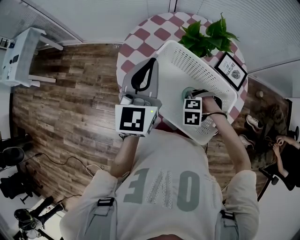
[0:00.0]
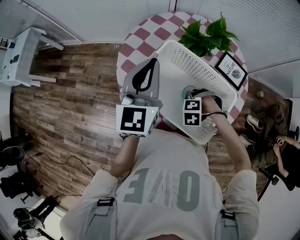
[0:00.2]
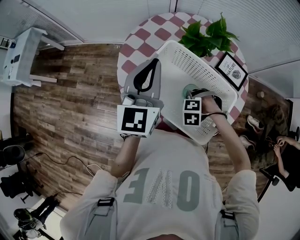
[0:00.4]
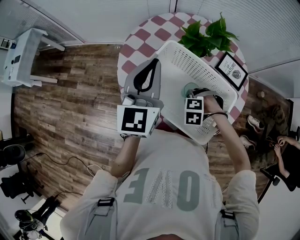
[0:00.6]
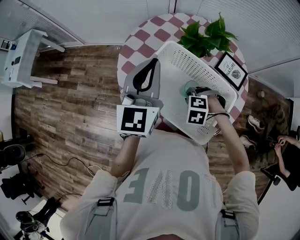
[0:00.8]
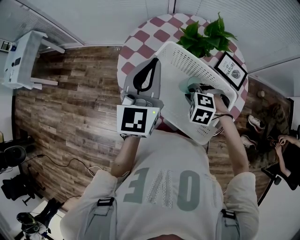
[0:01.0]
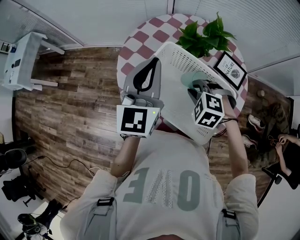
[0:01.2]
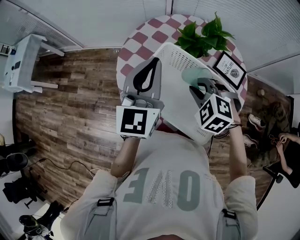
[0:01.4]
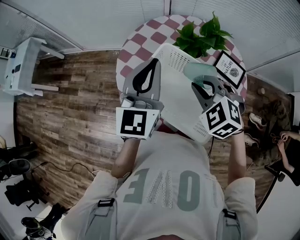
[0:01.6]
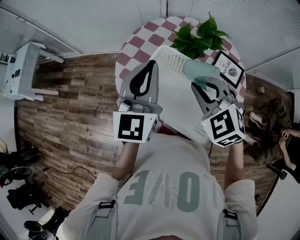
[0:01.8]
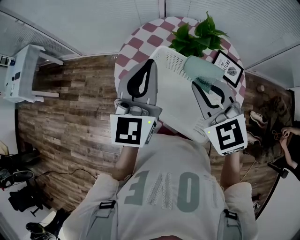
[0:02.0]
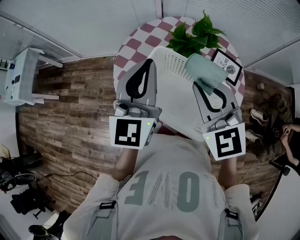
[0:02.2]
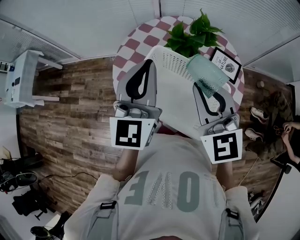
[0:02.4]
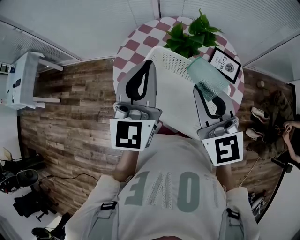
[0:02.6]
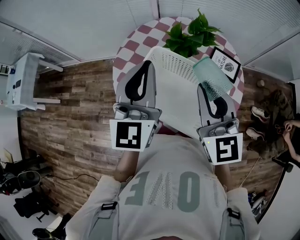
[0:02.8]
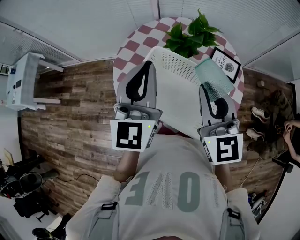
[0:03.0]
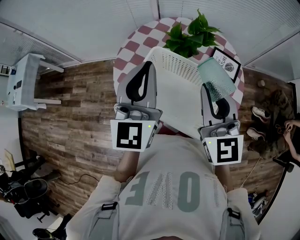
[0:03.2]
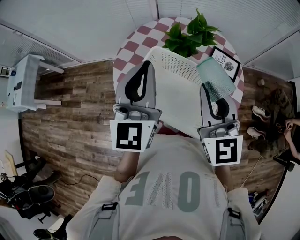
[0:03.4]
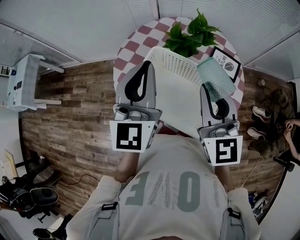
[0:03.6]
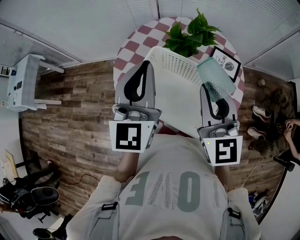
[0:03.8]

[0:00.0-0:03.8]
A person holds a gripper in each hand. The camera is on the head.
0.0 to 1.2 s: The right gripper travels upward by about 10 cm, swivels some 30 degrees, and closes up.
1.2 to 2.6 s: The left gripper travels upward by about 5 cm; the right gripper travels upward by about 20 cm, and angles its fingers upward, by some 50 degrees.
2.6 to 3.8 s: The grippers make only small movements.

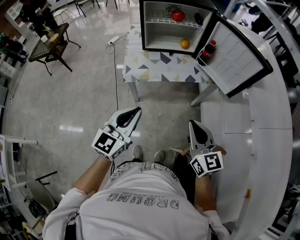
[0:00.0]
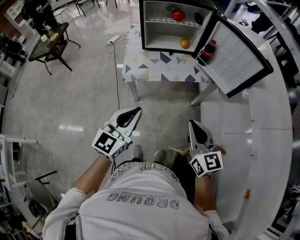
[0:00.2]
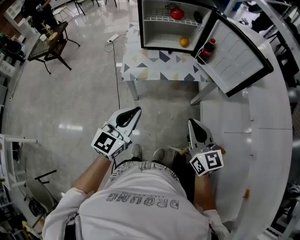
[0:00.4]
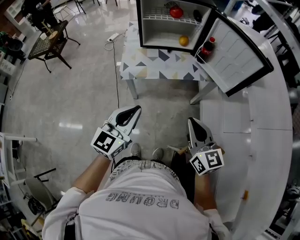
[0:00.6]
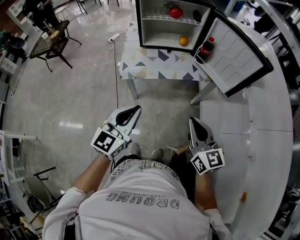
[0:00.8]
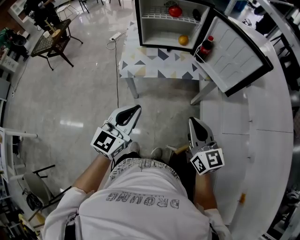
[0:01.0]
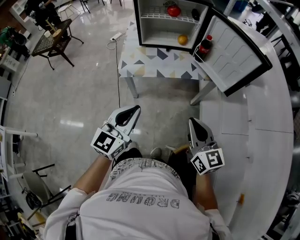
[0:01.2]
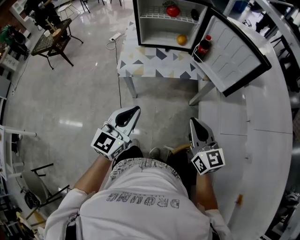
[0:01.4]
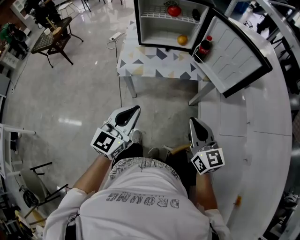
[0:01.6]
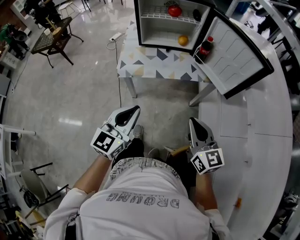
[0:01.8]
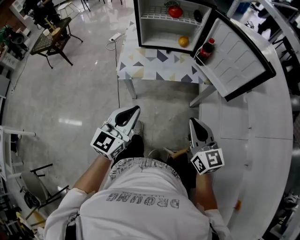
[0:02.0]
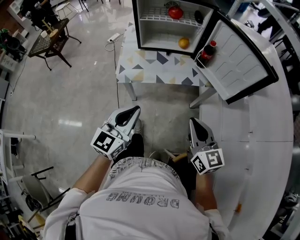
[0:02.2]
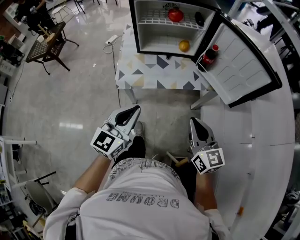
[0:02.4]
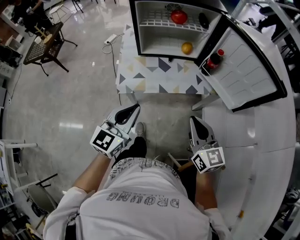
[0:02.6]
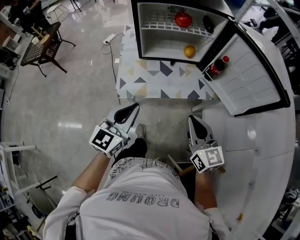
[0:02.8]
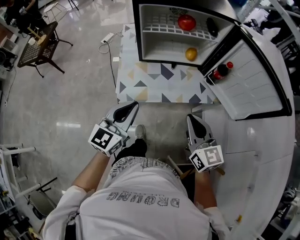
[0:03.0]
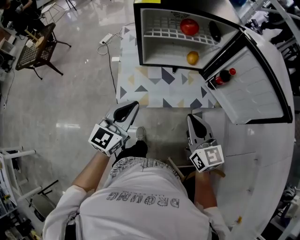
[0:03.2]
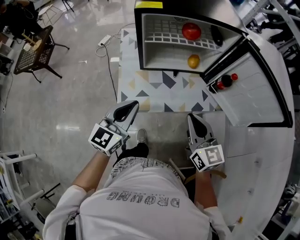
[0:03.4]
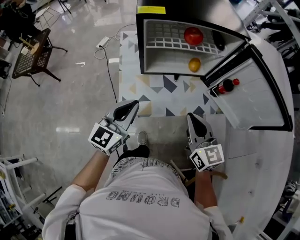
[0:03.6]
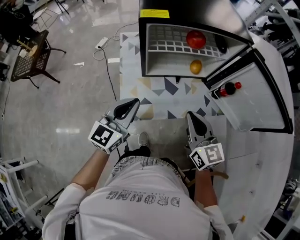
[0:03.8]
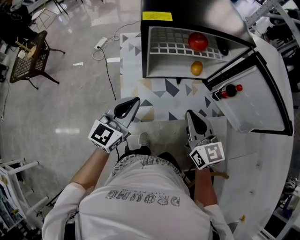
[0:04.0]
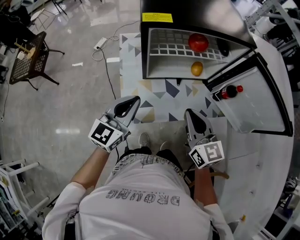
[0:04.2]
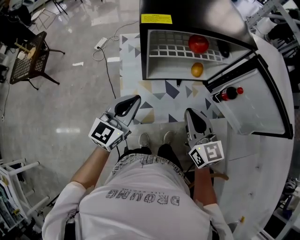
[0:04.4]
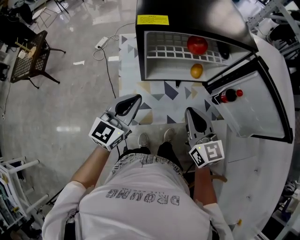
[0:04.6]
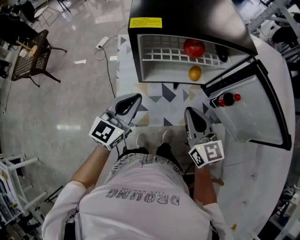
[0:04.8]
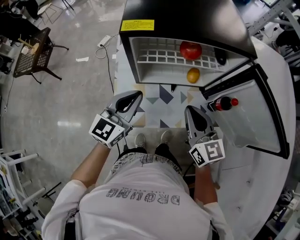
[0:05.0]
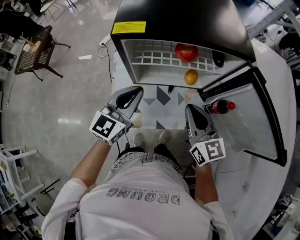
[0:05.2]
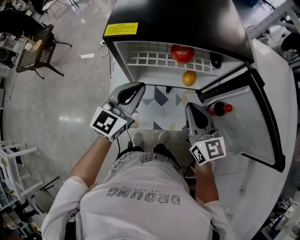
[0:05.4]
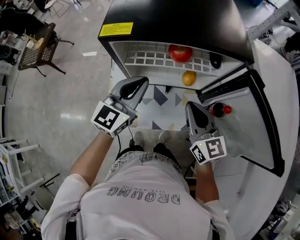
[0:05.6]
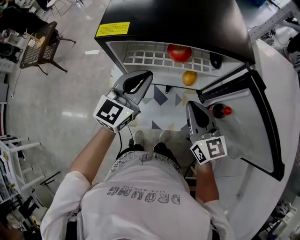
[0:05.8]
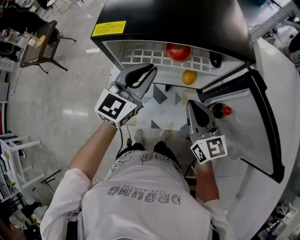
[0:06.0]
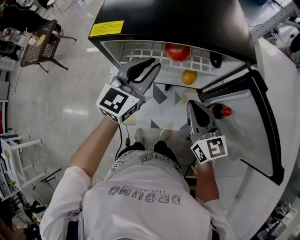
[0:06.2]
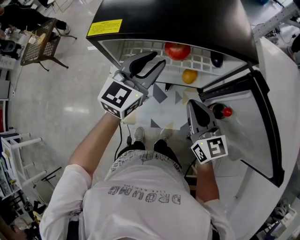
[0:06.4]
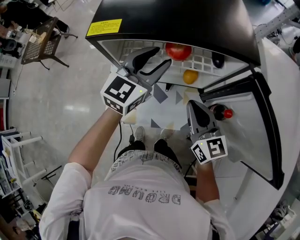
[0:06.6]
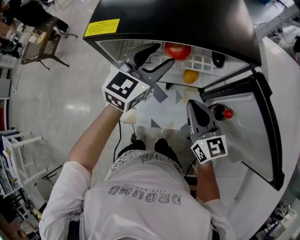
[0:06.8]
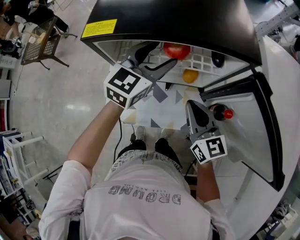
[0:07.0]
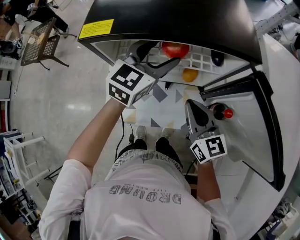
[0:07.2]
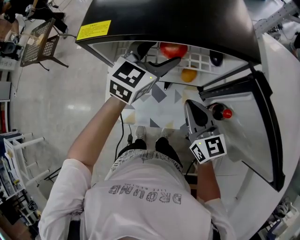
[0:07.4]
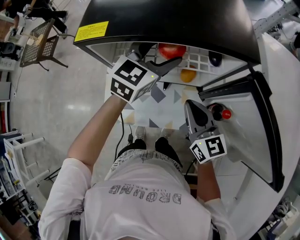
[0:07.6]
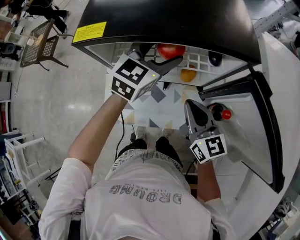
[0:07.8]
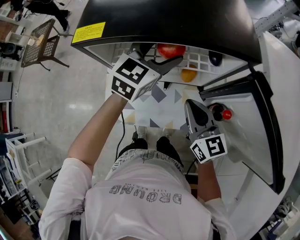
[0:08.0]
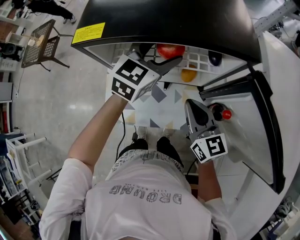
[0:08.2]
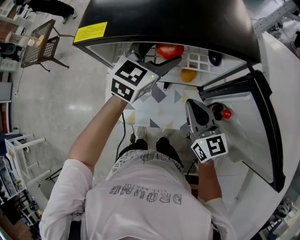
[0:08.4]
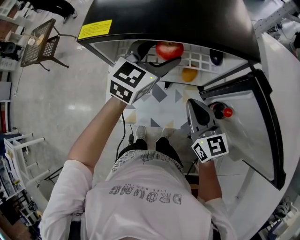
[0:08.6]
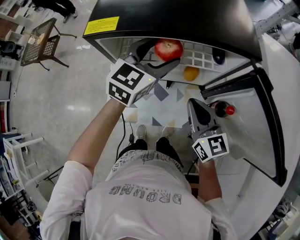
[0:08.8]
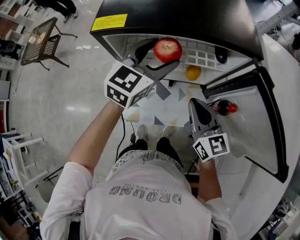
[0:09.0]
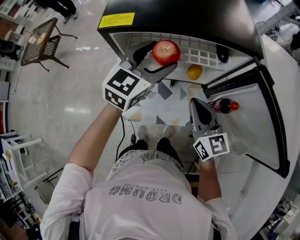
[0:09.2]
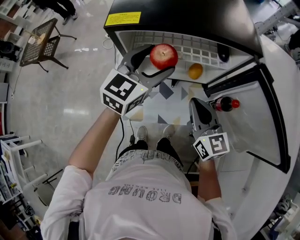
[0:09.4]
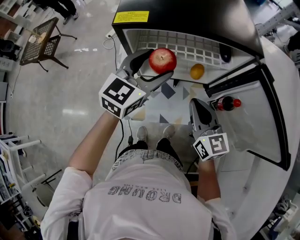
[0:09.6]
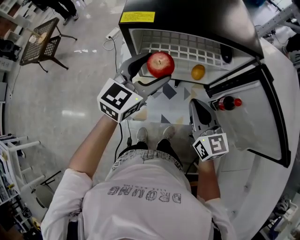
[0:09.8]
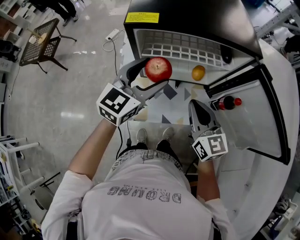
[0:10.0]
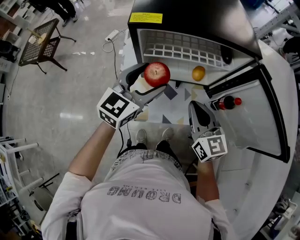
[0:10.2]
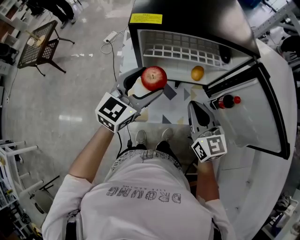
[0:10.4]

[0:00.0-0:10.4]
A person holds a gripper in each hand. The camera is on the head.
0.0 to 1.4 s: Both grippers move to the right, some 5 cm.
1.4 to 3.0 s: Both grippers travel together forward and to the left, some 25 cm.
3.0 to 4.4 s: Both grippers travel together forward and to the left, about 15 cm.
4.4 to 6.0 s: The grippers both shift forward and to the right by some 20 cm.
6.0 to 7.4 s: The left gripper is displaced forward and to the right by about 10 cm, and opens up.
7.4 to 9.0 s: The grippers make only small movements.
9.0 to 10.4 s: The right gripper shifts roughly 10 cm to the left and backward. The left gripper is displaced backward and to the left by about 15 cm.

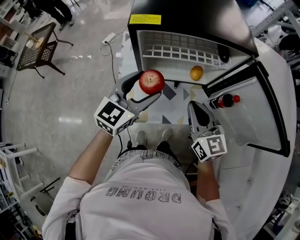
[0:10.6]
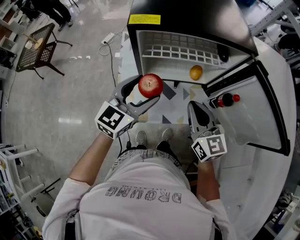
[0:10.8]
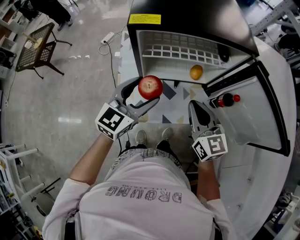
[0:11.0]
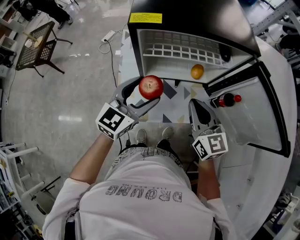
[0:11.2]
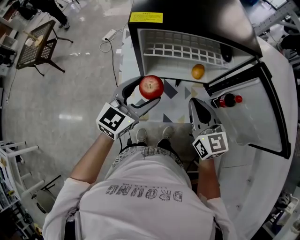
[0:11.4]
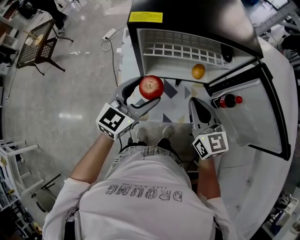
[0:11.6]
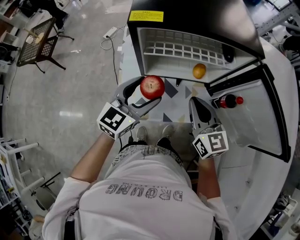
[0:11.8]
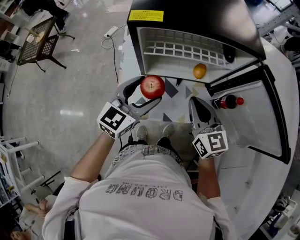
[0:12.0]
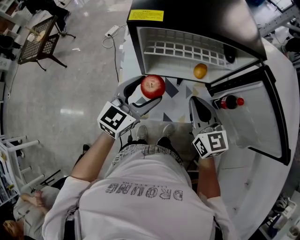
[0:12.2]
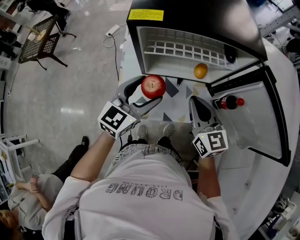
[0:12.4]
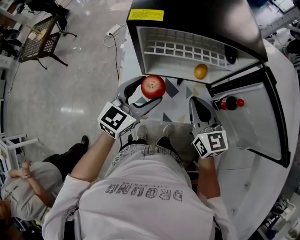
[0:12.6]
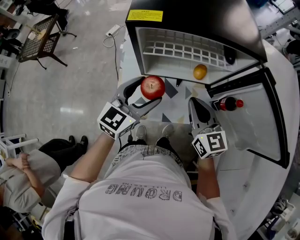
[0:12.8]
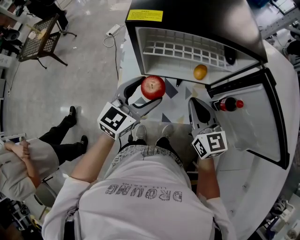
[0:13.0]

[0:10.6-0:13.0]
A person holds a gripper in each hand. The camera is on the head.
10.6 to 11.8 s: The grippers move only a little.
11.8 to 13.0 s: Both grippers stay about where they are.

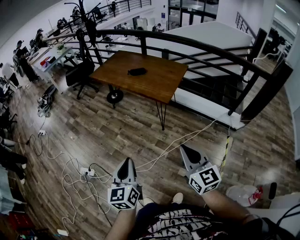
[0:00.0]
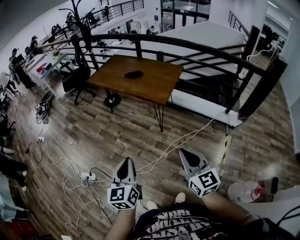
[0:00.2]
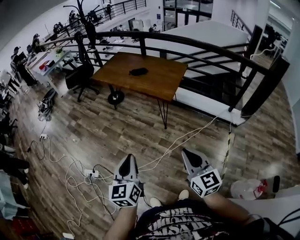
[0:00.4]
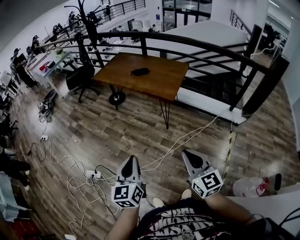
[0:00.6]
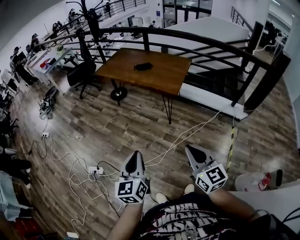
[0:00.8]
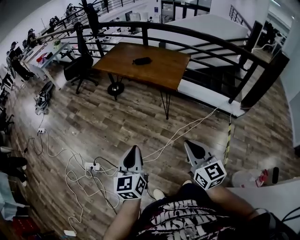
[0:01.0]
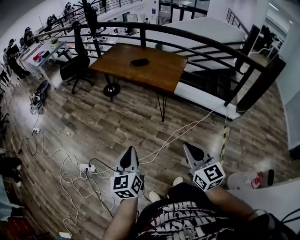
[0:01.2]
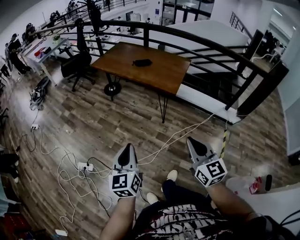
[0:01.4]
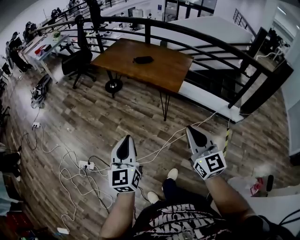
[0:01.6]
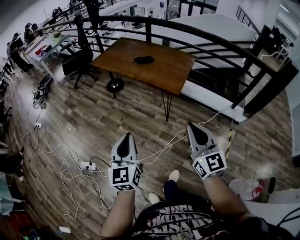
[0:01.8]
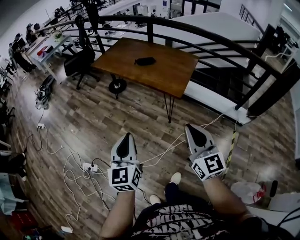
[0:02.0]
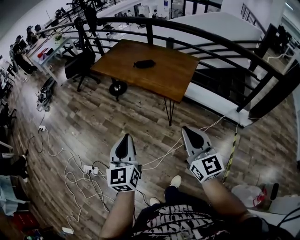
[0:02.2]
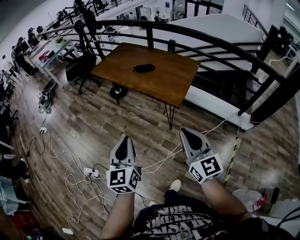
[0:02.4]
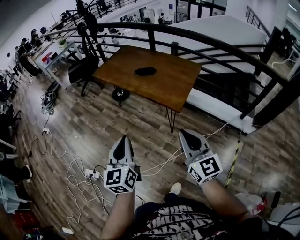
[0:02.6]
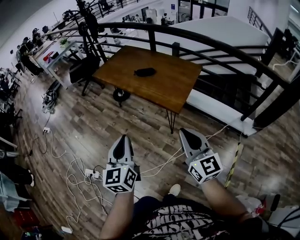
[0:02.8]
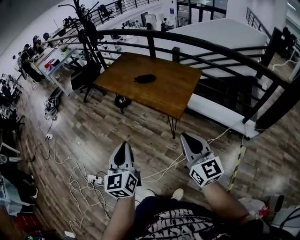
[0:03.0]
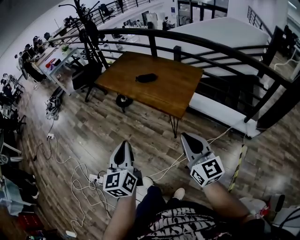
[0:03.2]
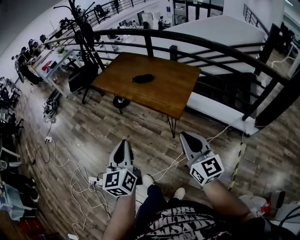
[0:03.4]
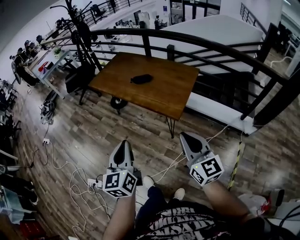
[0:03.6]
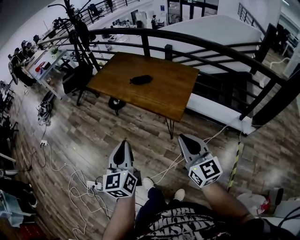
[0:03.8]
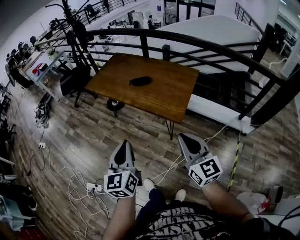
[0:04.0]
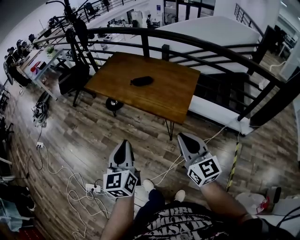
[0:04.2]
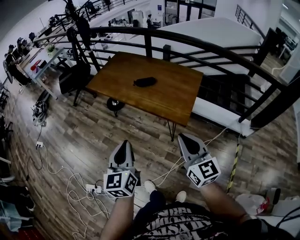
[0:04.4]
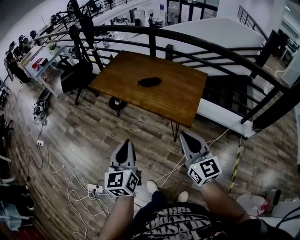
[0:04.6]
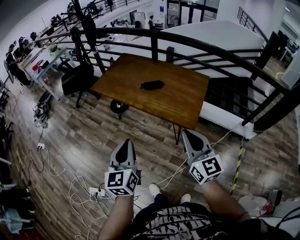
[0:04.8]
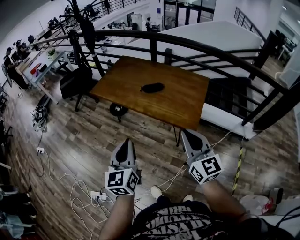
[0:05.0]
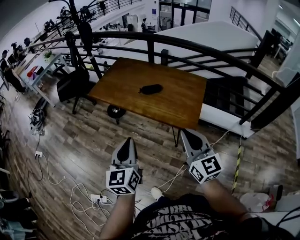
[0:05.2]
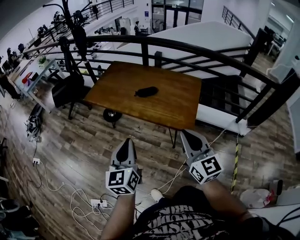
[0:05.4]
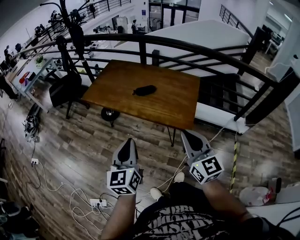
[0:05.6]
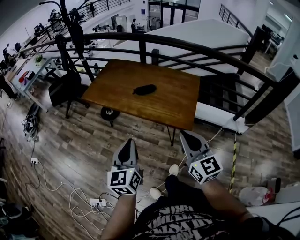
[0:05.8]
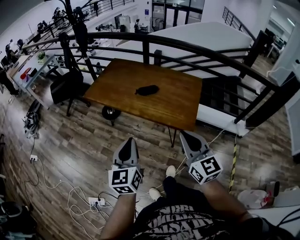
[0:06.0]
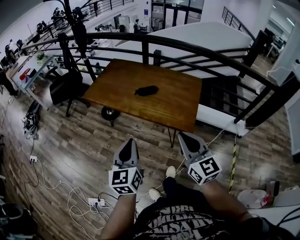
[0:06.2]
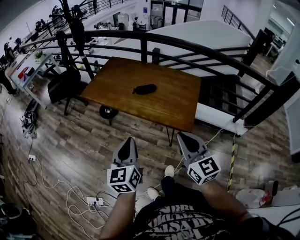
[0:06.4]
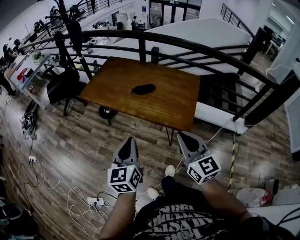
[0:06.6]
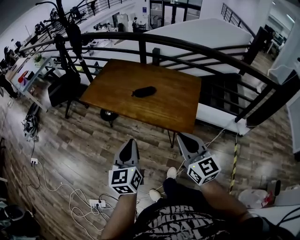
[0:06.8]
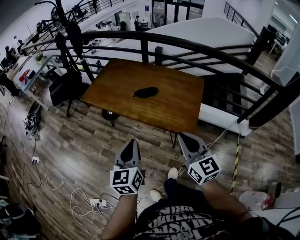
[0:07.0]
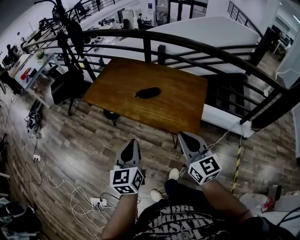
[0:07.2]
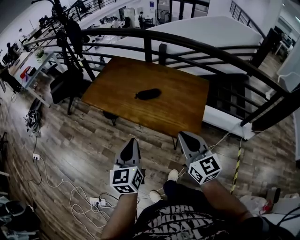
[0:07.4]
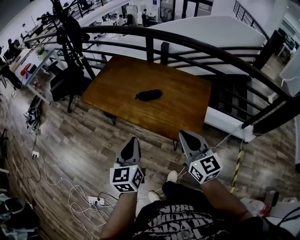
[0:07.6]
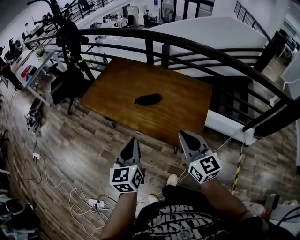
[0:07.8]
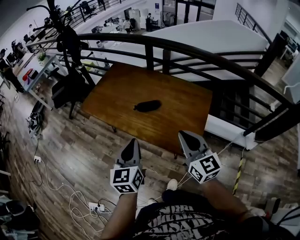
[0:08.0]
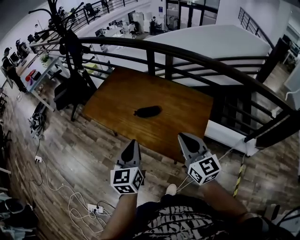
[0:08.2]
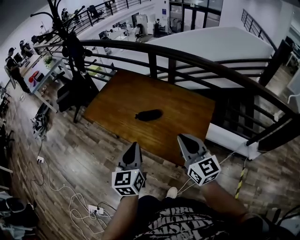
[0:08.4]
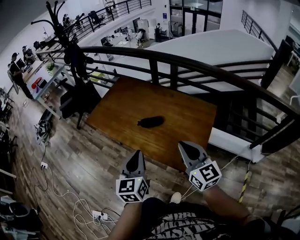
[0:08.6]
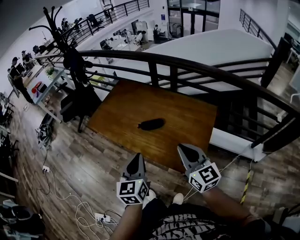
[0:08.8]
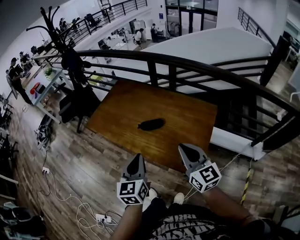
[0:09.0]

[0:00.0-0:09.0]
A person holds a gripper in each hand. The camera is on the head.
0.0 to 1.6 s: The left gripper is displaced to the left and forward by some 10 cm. The right gripper goes roughly 10 cm to the left.
1.6 to 3.0 s: Both grippers travel together forward and to the right, approximately 20 cm.
3.0 to 4.4 s: Both grippers move forward and to the left, approximately 15 cm.
4.4 to 6.0 s: The left gripper goes roughly 10 cm forward and to the left, while the right gripper travels to the left and forward by roughly 10 cm.
6.0 to 7.6 s: The two grippers go roughly 15 cm forward.
7.6 to 9.0 s: Both grippers travel together forward and to the right, about 10 cm.
